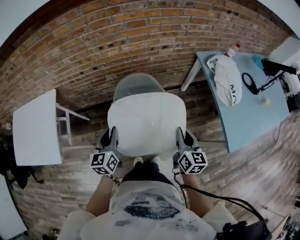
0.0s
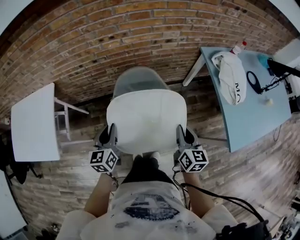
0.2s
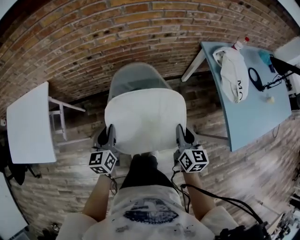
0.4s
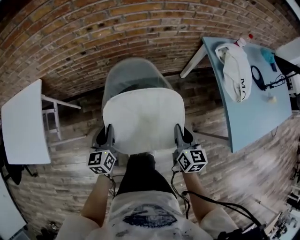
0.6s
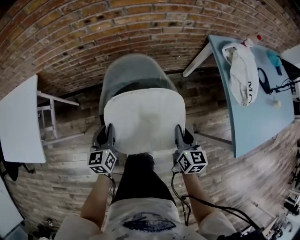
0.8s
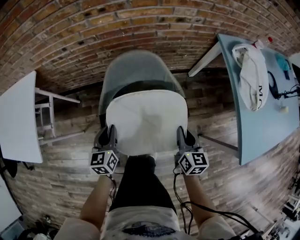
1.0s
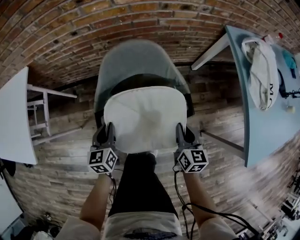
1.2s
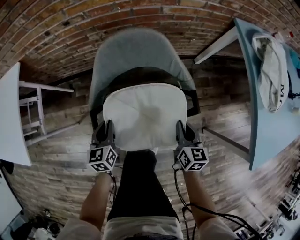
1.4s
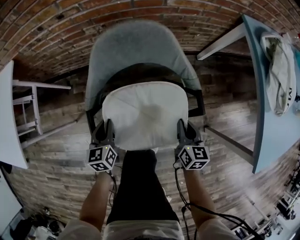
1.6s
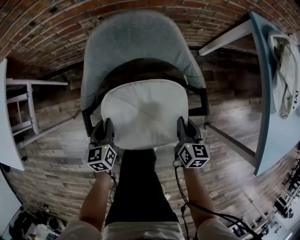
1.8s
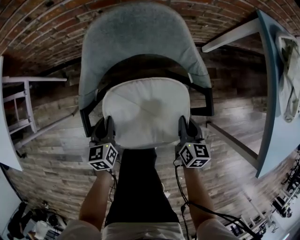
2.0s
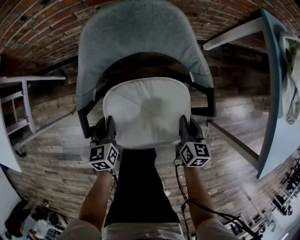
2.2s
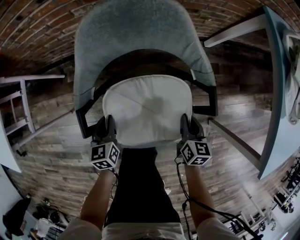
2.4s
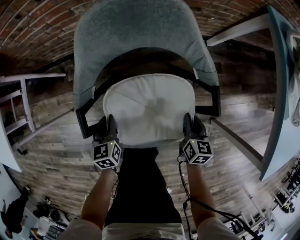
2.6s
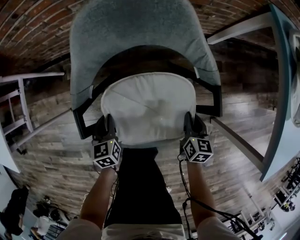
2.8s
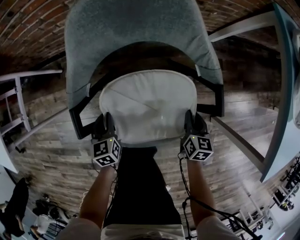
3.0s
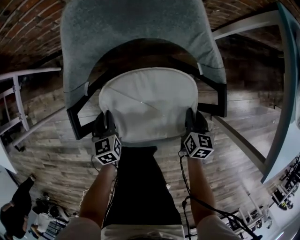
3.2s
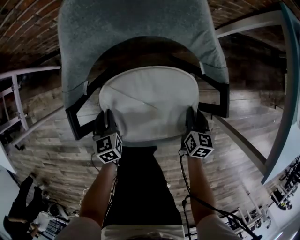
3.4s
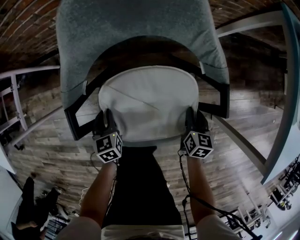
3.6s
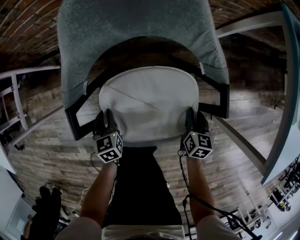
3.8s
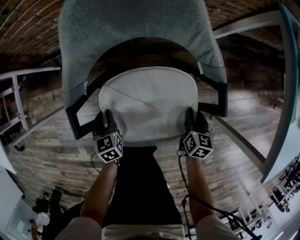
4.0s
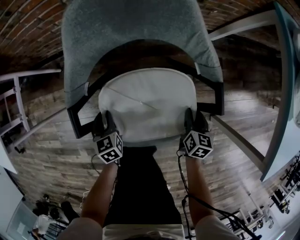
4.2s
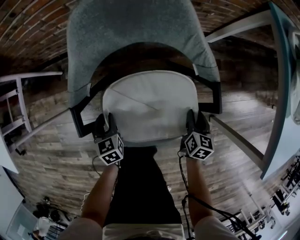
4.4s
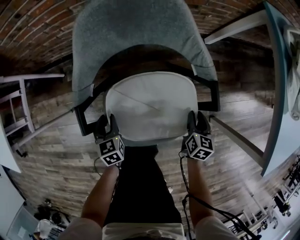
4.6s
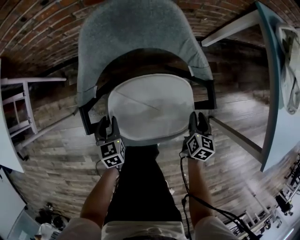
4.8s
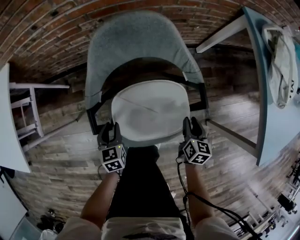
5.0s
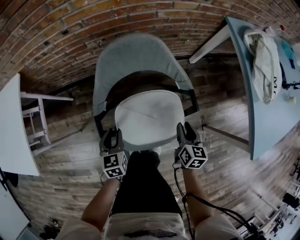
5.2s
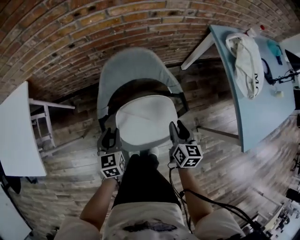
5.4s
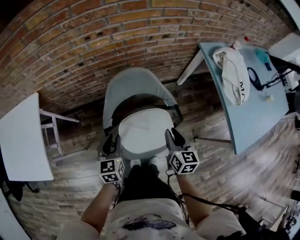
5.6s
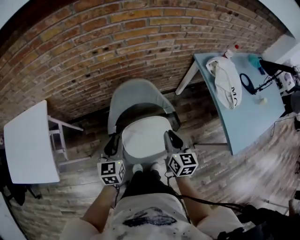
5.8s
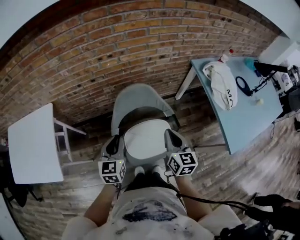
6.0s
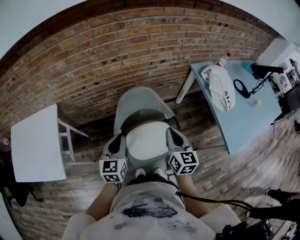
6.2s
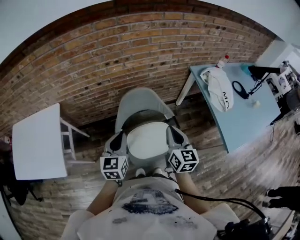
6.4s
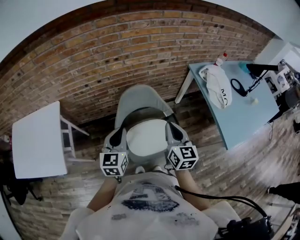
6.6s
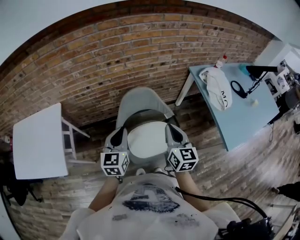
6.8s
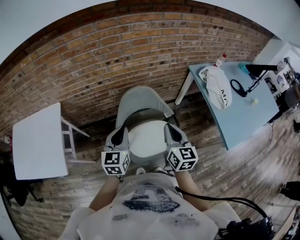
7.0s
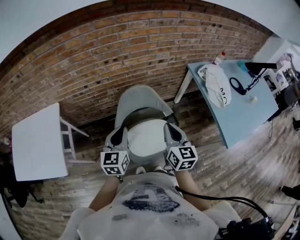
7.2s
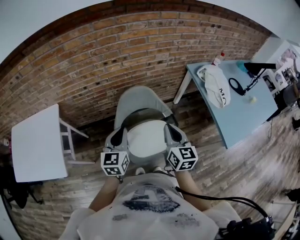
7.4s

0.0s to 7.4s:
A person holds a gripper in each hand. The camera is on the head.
0.0s to 1.4s: The two grippers go approximately 30 cm downward.
1.4s to 3.0s: The two grippers go about 20 cm downward.
3.0s to 4.4s: The right gripper opens up.
4.4s to 6.0s: Both grippers travel together upward, approximately 50 cm. The left gripper changes its angle by about 40 degrees; the right gripper turns by about 30 degrees, and closes up.
6.0s to 7.4s: The grippers both shift upward by roughly 10 cm.

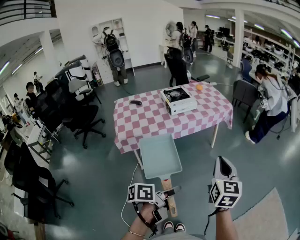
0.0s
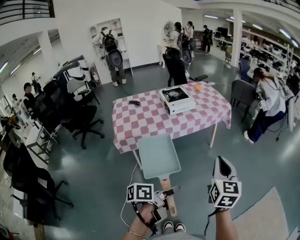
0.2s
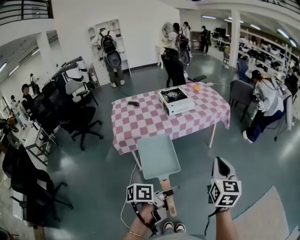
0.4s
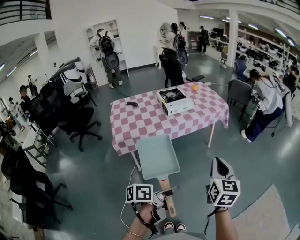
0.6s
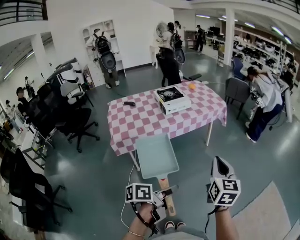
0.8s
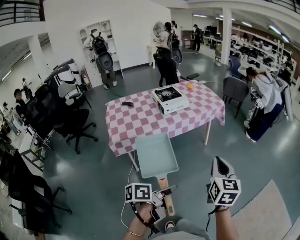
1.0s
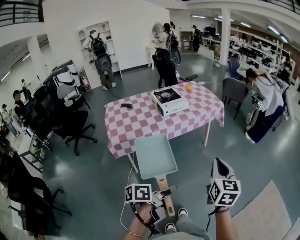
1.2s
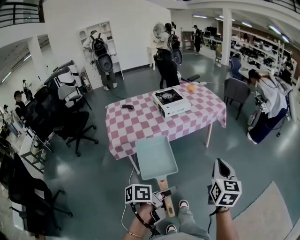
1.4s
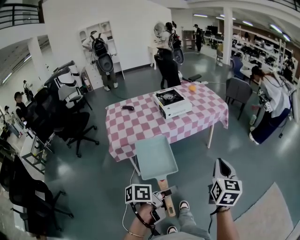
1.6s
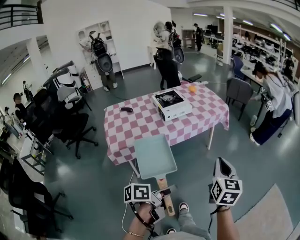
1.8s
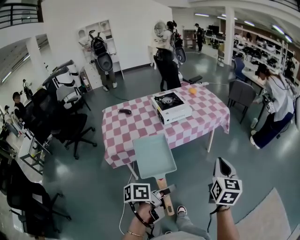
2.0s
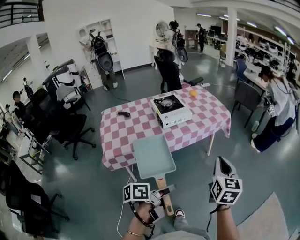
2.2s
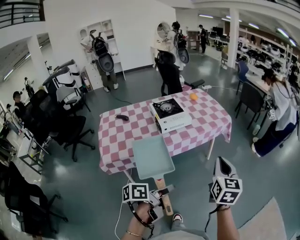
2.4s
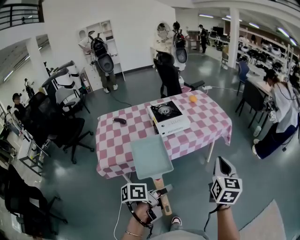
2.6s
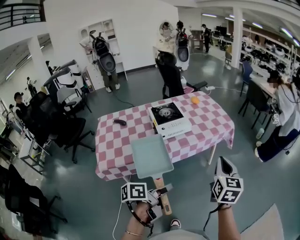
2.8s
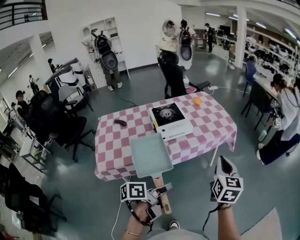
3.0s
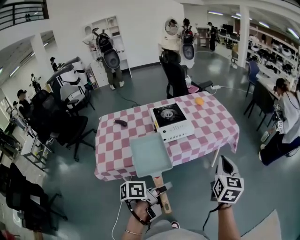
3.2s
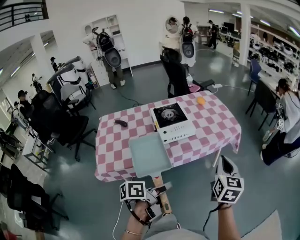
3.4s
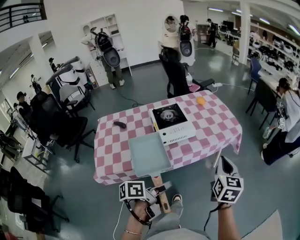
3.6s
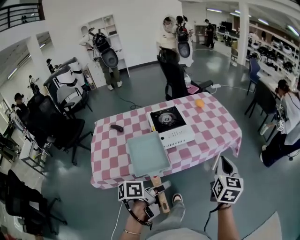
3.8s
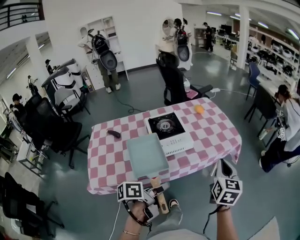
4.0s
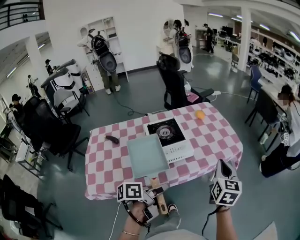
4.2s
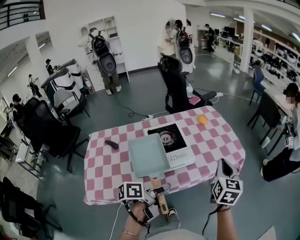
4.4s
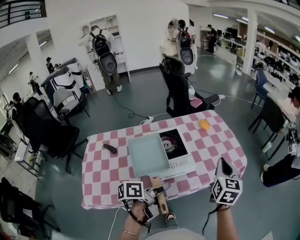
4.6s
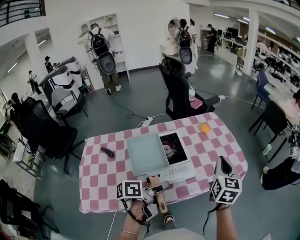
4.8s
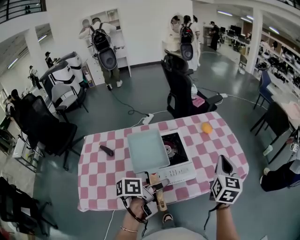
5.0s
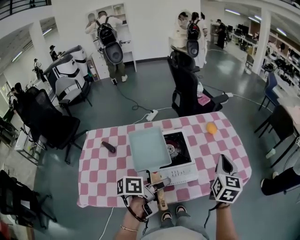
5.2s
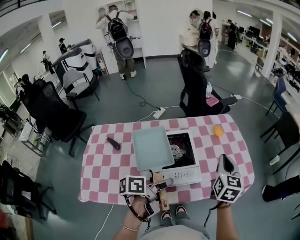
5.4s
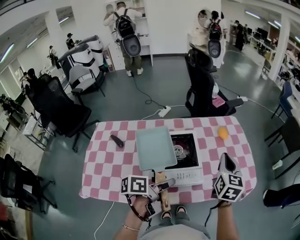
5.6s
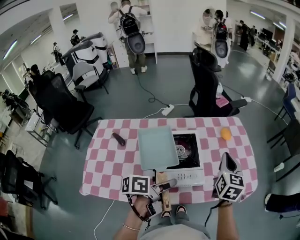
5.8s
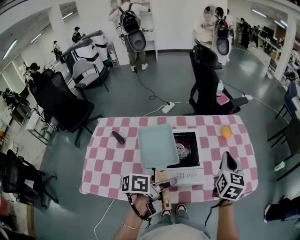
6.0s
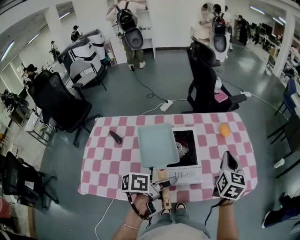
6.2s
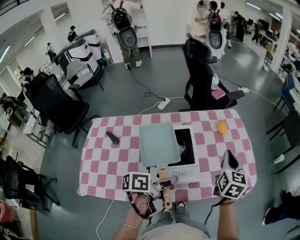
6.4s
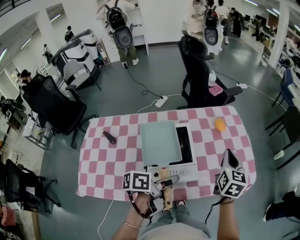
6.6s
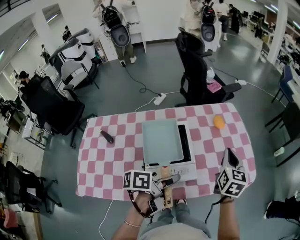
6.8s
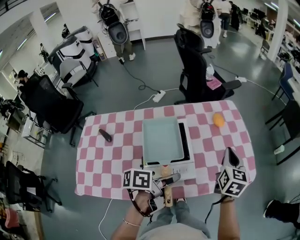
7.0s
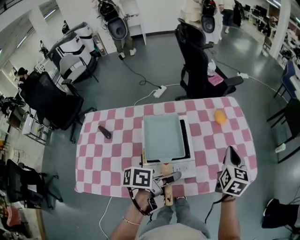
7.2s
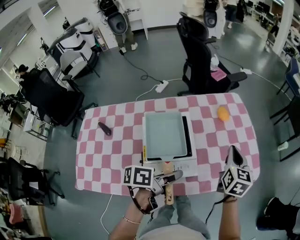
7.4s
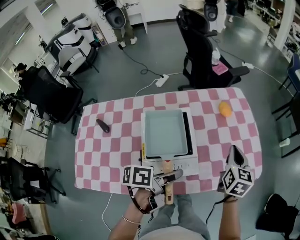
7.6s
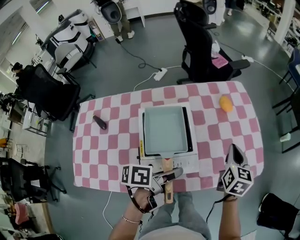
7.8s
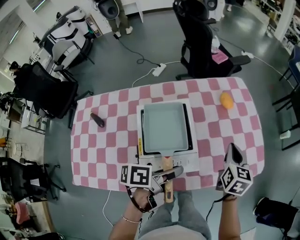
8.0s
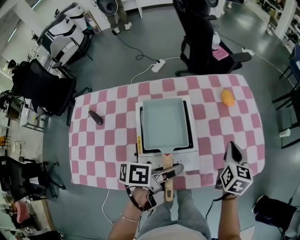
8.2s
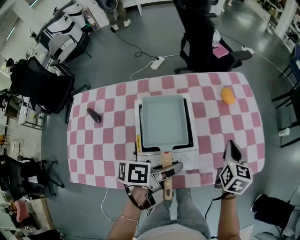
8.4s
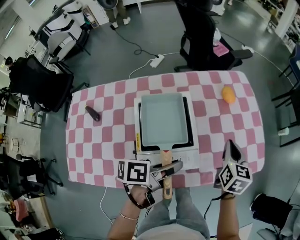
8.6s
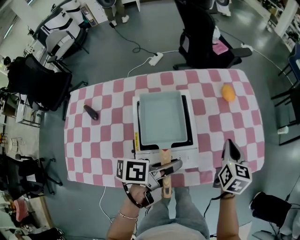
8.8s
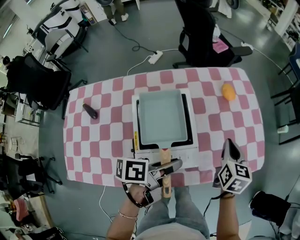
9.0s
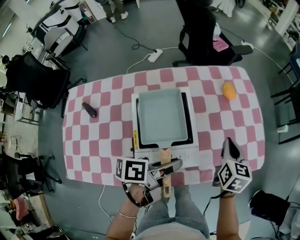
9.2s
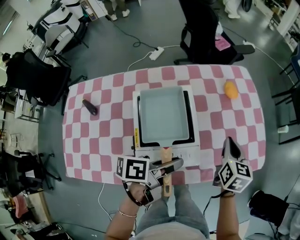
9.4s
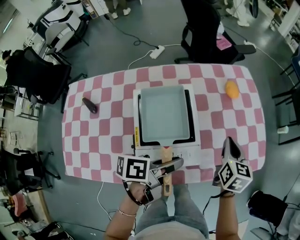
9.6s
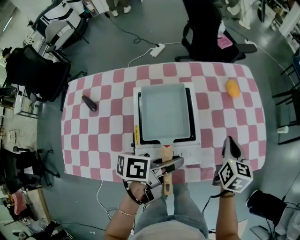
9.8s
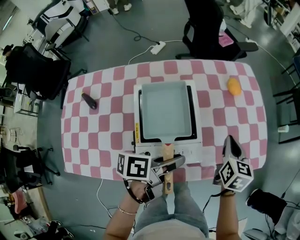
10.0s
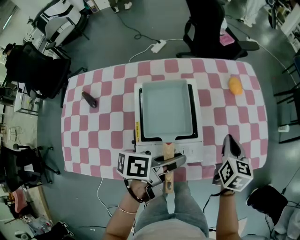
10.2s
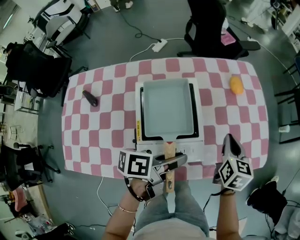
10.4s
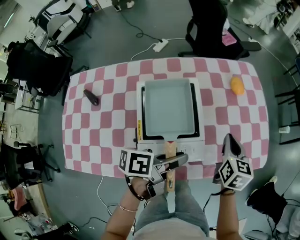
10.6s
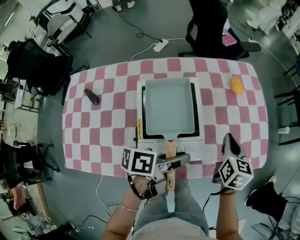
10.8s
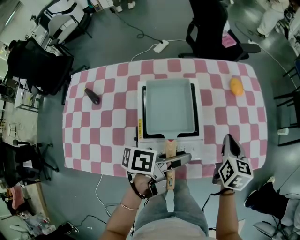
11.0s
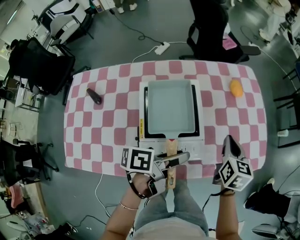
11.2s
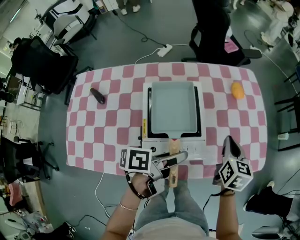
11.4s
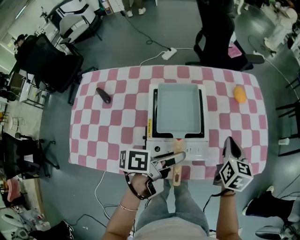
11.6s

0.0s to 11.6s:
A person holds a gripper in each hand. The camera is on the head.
0.0s to 1.4s: There are only small adjustments of the grippers.
1.4s to 2.8s: Both grippers move forward, about 30 cm.
2.8s to 4.4s: The left gripper is displaced forward and to the left by some 30 cm, while the right gripper shifts some 25 cm forward.
4.4s to 5.8s: The grippers both shift forward and to the left by some 20 cm.
5.8s to 7.2s: The right gripper shifts roughly 10 cm to the right, downward and forward. Meanwhile the left gripper is displaced forward and to the right by approximately 10 cm.
7.2s to 8.8s: The right gripper moves downward, approximately 10 cm.
8.8s to 10.2s: The grippers move only a little.
10.2s to 11.6s: The left gripper opens up.

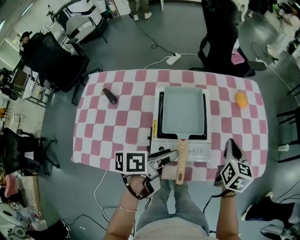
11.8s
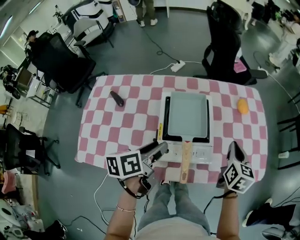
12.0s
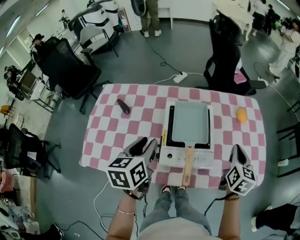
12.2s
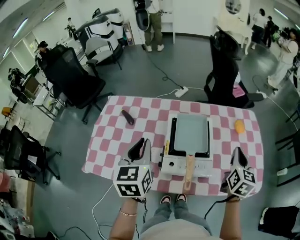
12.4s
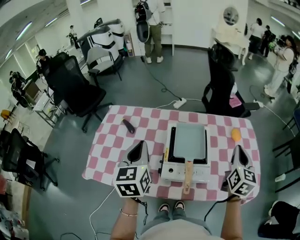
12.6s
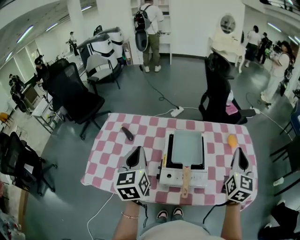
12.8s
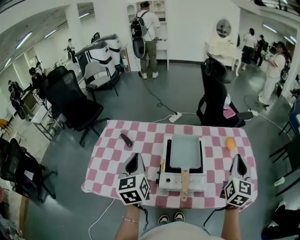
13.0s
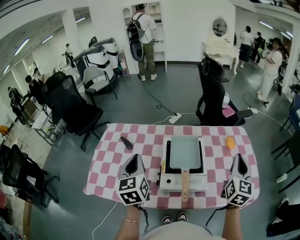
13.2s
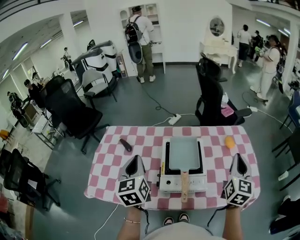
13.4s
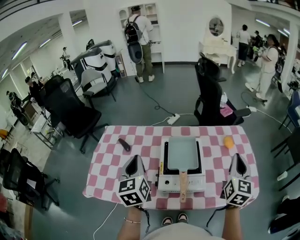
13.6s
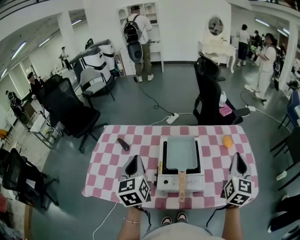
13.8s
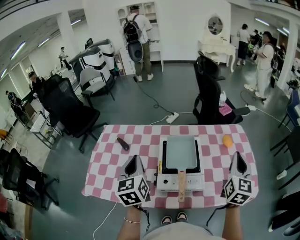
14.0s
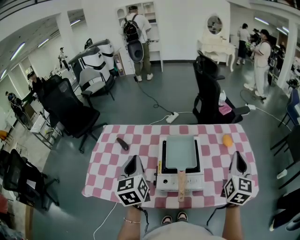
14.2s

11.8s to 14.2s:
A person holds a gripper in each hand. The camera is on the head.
11.8s to 13.0s: The left gripper changes place by approximately 25 cm, turns by approximately 80 degrees, and closes its fingers. The right gripper shifts some 15 cm upward, and turns by about 30 degrees.
13.0s to 14.2s: The grippers move only a little.

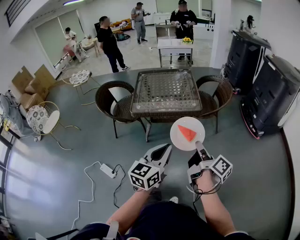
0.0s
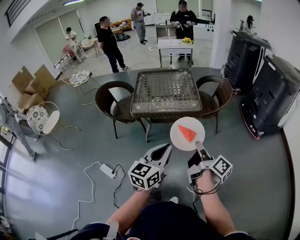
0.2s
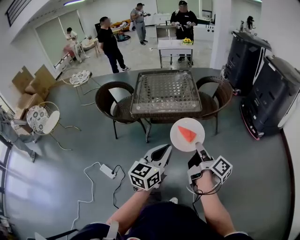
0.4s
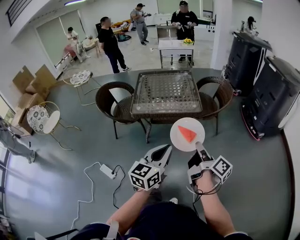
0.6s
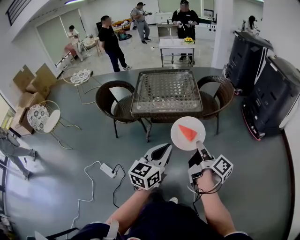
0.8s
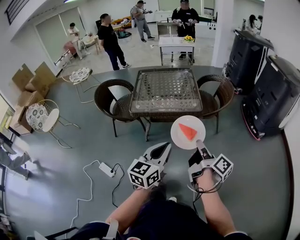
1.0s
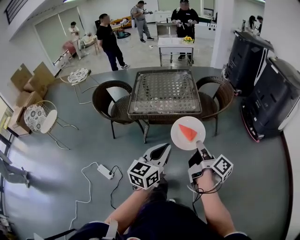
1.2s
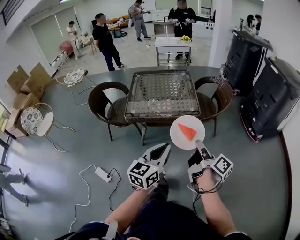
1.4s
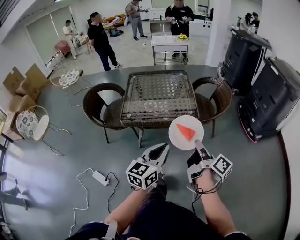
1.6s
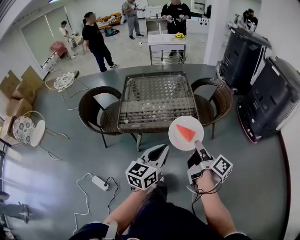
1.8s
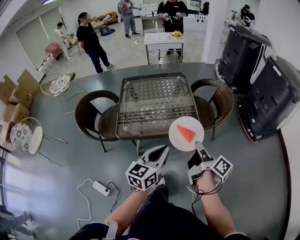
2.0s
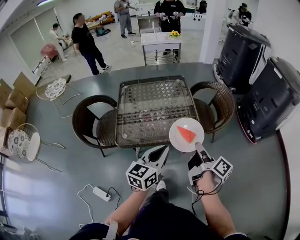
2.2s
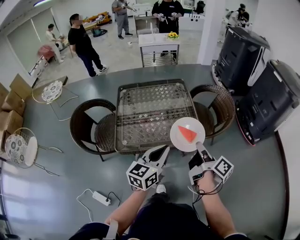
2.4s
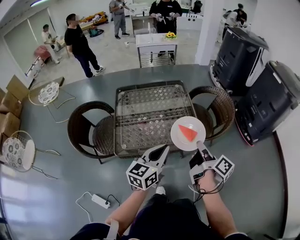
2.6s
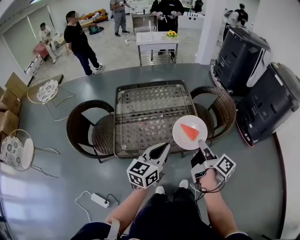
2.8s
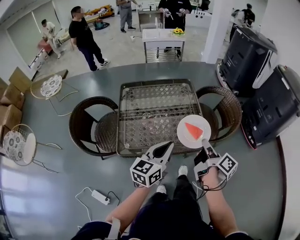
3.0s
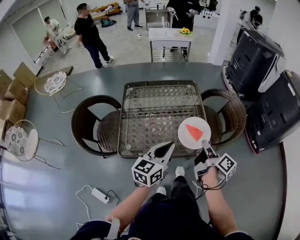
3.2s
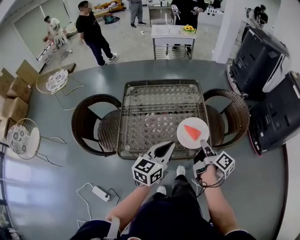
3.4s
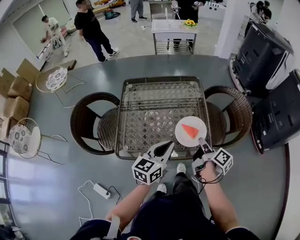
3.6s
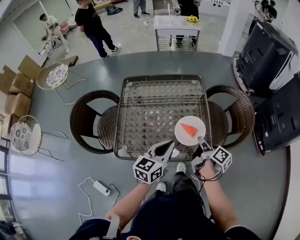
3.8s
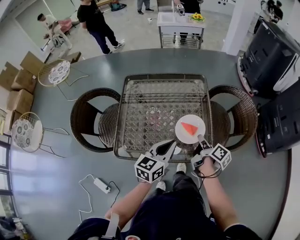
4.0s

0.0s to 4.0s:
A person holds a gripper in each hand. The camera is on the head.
0.0s to 1.4s: The grippers both shift forward by about 10 cm.
1.4s to 2.6s: The two grippers go roughly 25 cm forward.
2.6s to 4.0s: Both grippers move forward and downward, some 20 cm.
